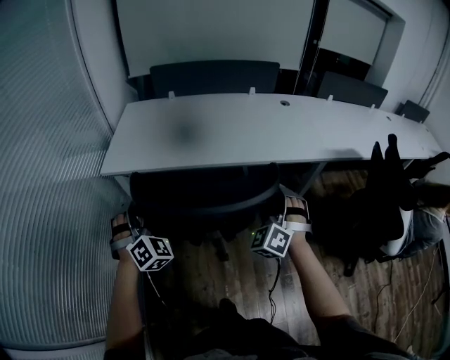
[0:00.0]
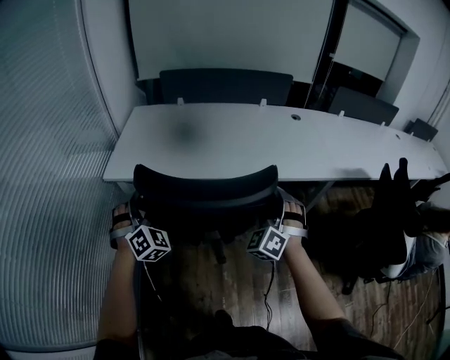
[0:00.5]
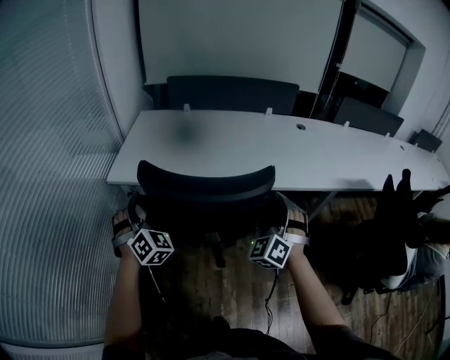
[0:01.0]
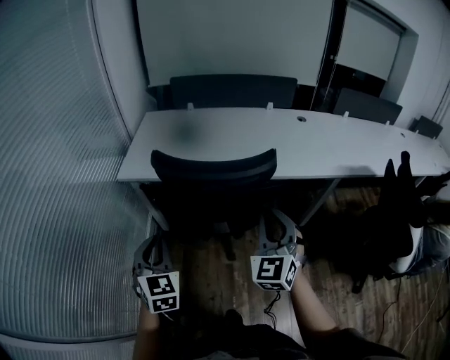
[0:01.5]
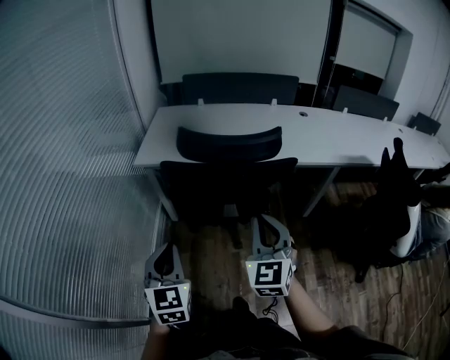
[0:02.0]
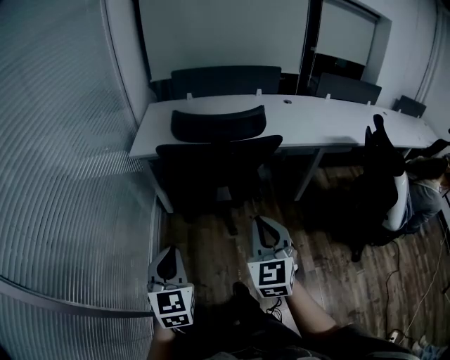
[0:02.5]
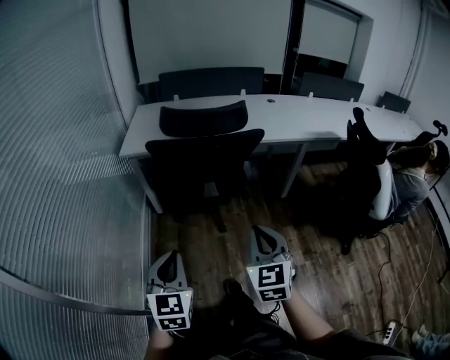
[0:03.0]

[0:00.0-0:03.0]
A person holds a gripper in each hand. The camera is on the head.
0:00.0 to 0:01.5: The right gripper goes some 10 cm upward and to the left, turns by some 40 degrees, and closes up, while the left gripper goes approximately 10 cm backward, rolls counterclockwise, seen from behind, by approximately 40 degrees, and closes up.
0:01.5 to 0:03.0: The two grippers go some 30 cm backward.

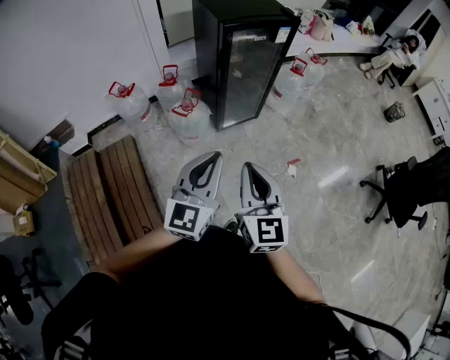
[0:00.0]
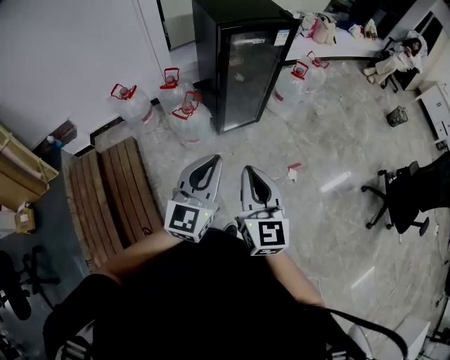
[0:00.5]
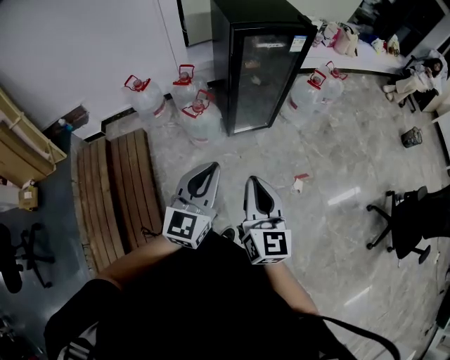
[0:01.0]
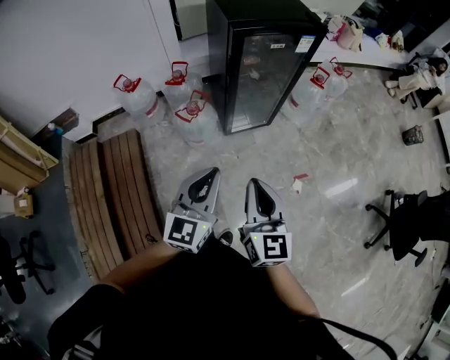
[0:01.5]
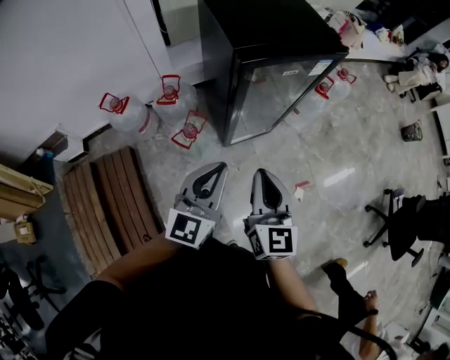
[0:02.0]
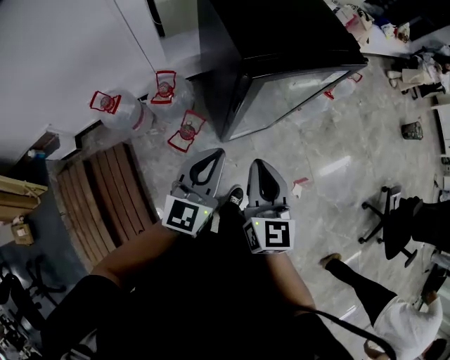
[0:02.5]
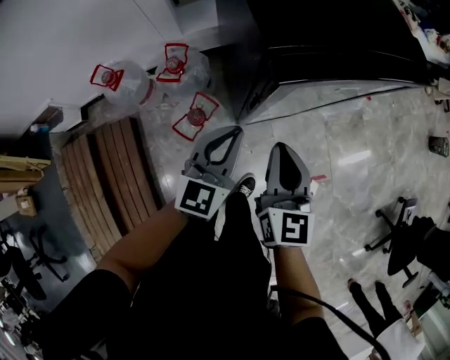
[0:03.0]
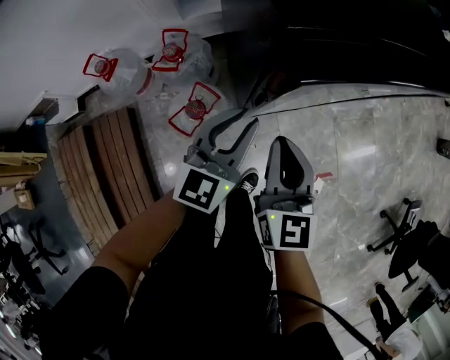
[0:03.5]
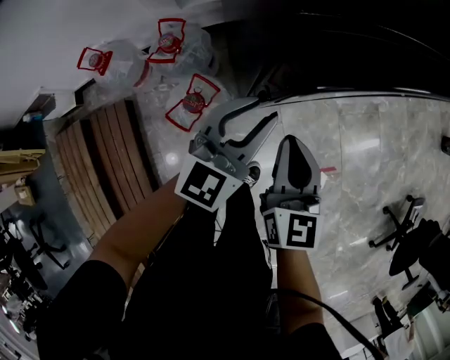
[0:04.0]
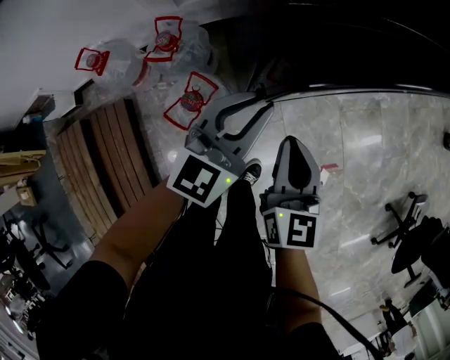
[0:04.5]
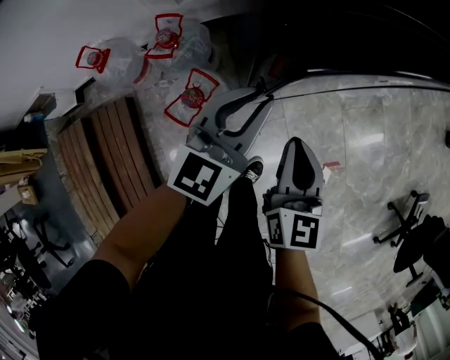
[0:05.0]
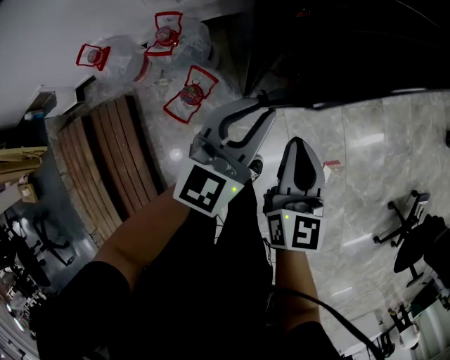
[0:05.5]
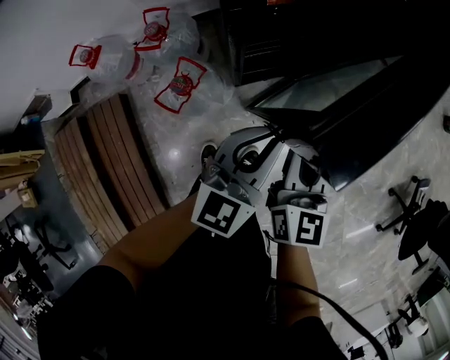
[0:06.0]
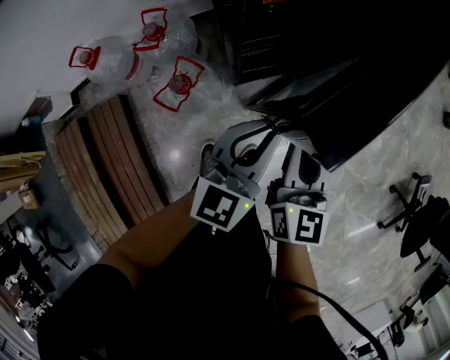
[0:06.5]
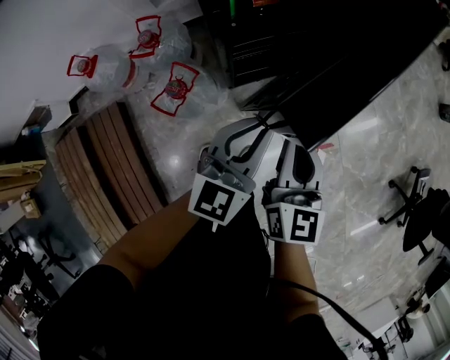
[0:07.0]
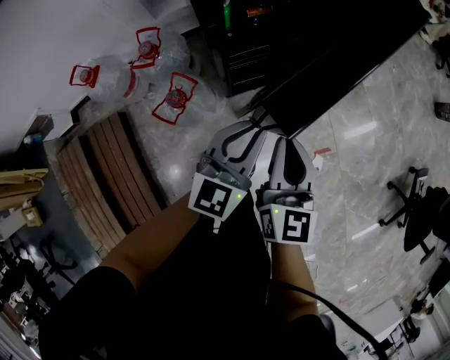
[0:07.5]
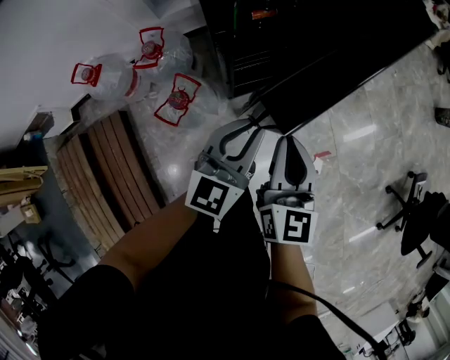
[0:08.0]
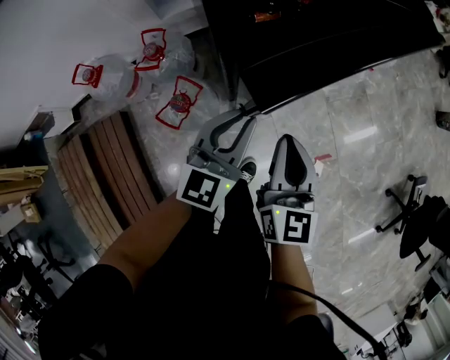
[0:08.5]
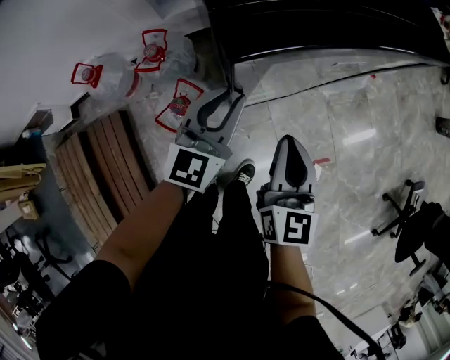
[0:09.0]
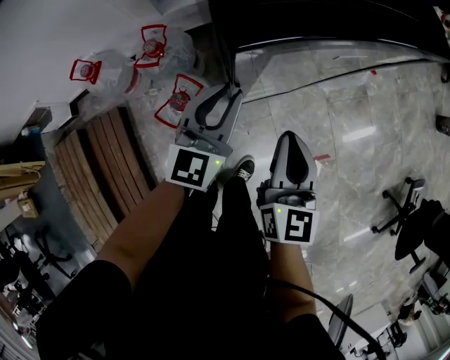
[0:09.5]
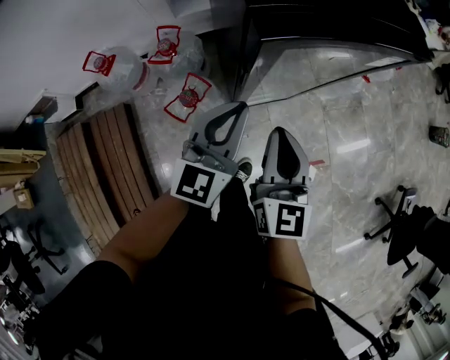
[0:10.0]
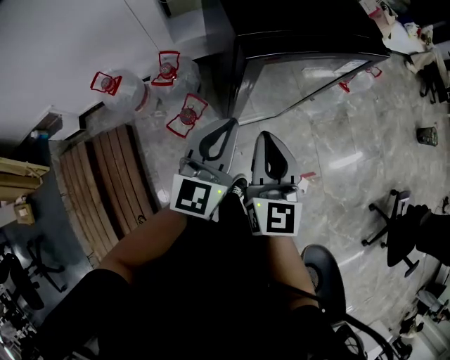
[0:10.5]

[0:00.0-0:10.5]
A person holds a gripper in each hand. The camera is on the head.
0:00.0 to 0:02.0: Both grippers travel together forward, approximately 30 cm.
0:02.0 to 0:04.0: Both grippers travel together forward and downward, approximately 30 cm. The left gripper opens up.
0:04.0 to 0:06.5: Both grippers move to the right and backward, roughly 10 cm.
0:06.5 to 0:08.5: The left gripper shifts roughly 5 cm to the left.
0:08.5 to 0:10.5: The left gripper is displaced upward by about 15 cm. The right gripper travels upward and to the left by some 15 cm.

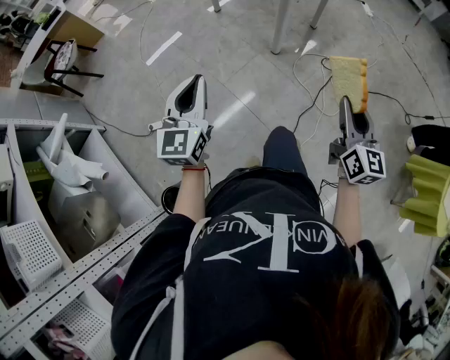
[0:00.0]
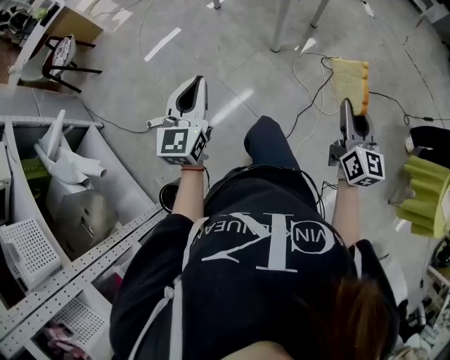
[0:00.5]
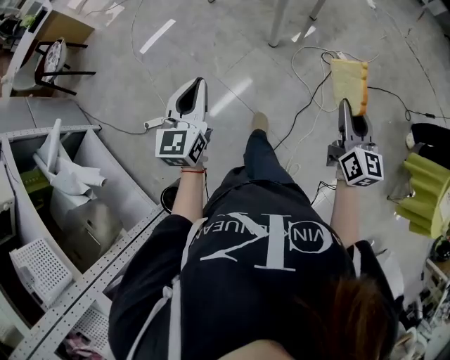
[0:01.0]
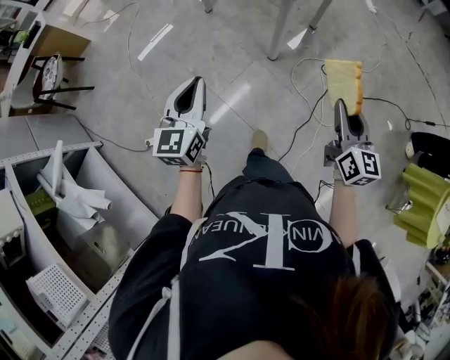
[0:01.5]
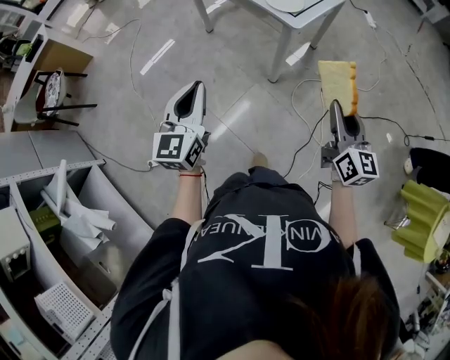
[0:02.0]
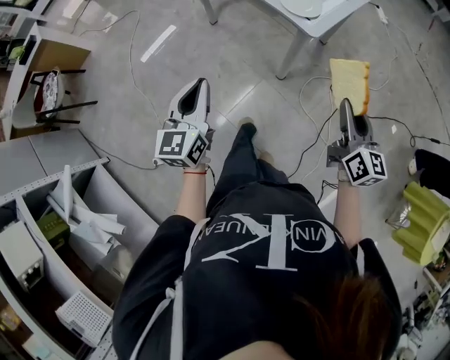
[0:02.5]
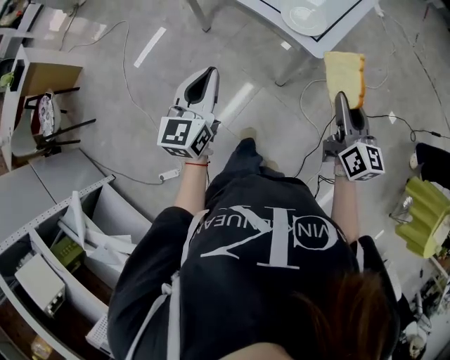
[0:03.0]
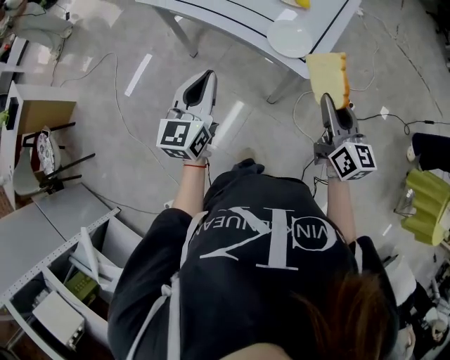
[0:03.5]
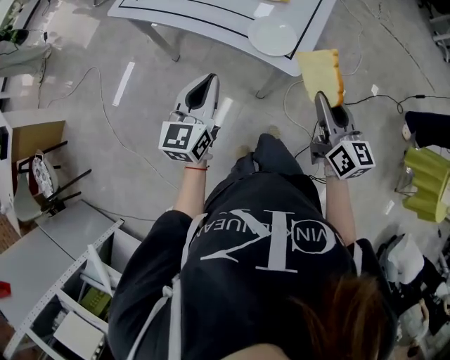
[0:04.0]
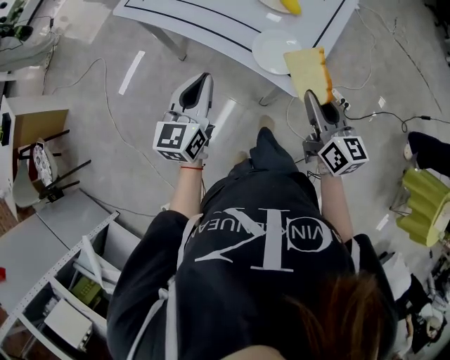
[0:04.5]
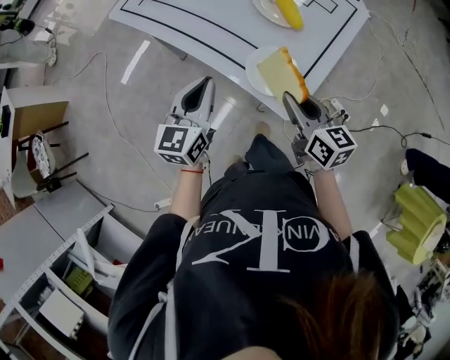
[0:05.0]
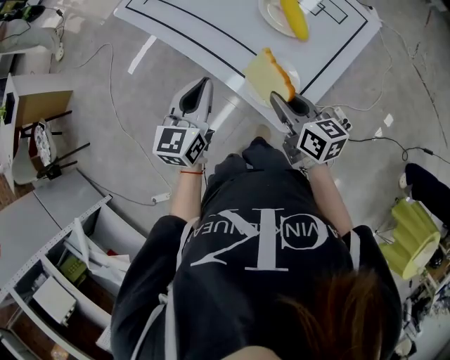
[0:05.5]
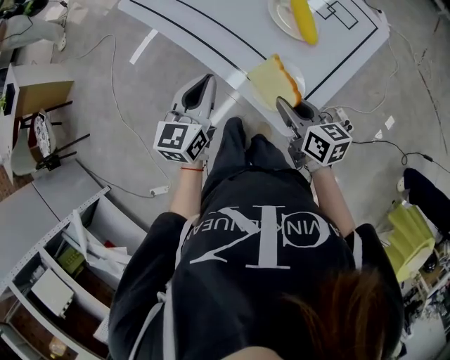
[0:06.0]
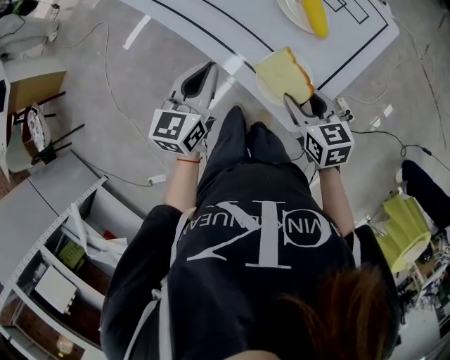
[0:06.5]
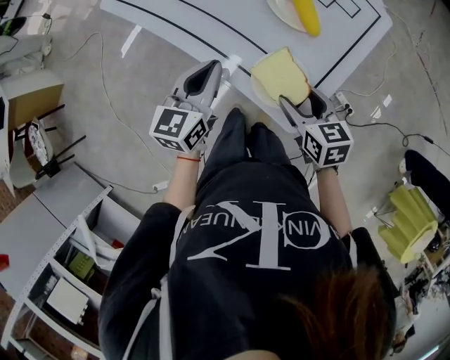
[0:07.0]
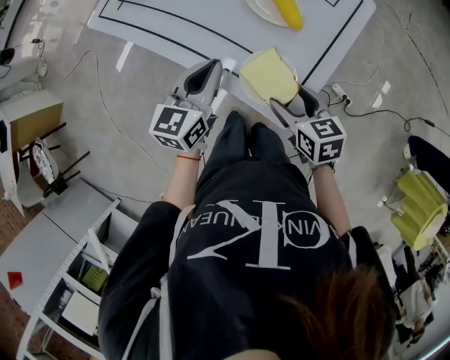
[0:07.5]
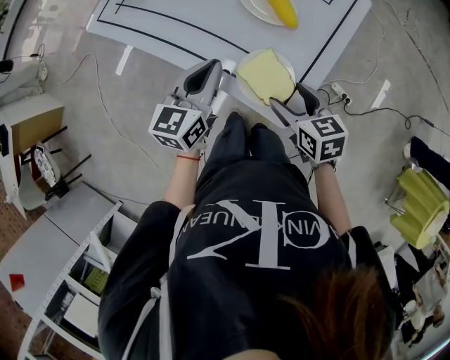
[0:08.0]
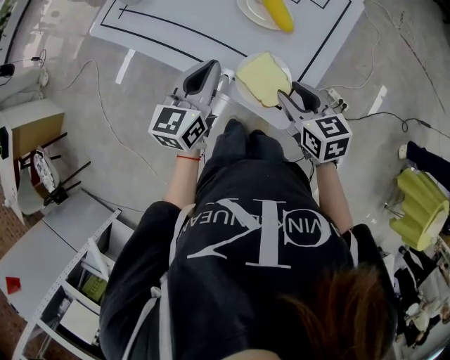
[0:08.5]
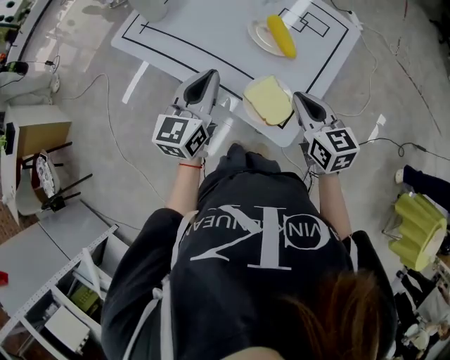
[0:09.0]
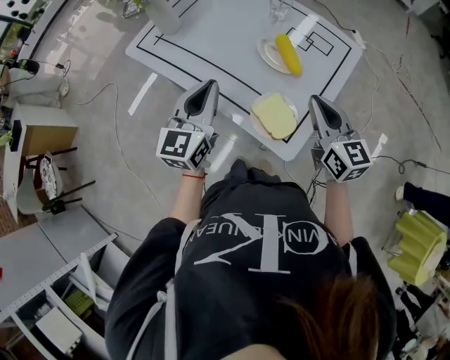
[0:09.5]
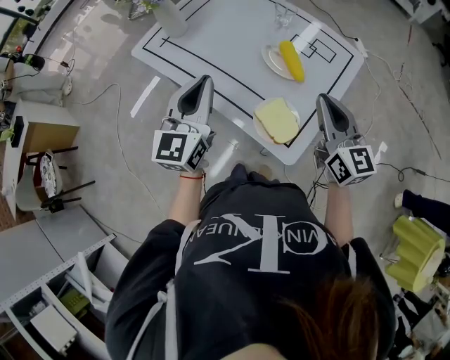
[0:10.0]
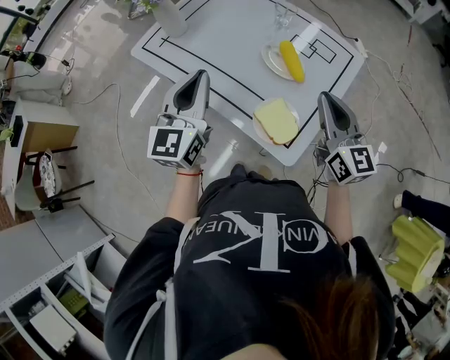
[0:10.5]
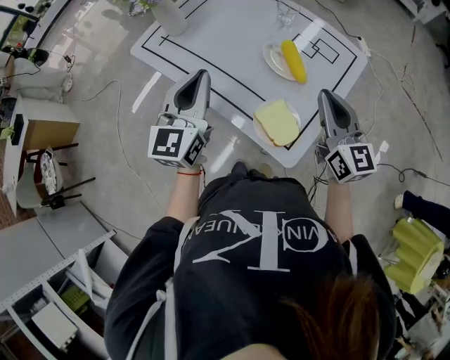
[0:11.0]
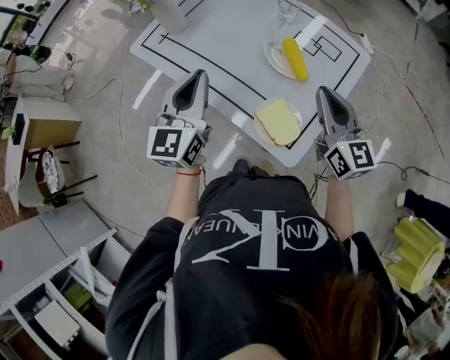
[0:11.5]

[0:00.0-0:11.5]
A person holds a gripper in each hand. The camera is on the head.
0:00.0 to 0:02.0: Both grippers travel together forward, roughly 30 cm.
0:02.0 to 0:04.0: The grippers both shift forward by some 30 cm. The left gripper changes its angle by roughly 20 degrees.
0:04.0 to 0:06.0: The left gripper moves forward, approximately 15 cm, while the right gripper travels forward and downward by some 20 cm, and changes its angle by approximately 40 degrees.
0:06.0 to 0:07.5: The left gripper moves to the right, roughly 5 cm; the right gripper turns by approximately 20 degrees, and opens.
0:07.5 to 0:09.5: The right gripper heads upward, covering about 15 cm, changes its angle by roughly 30 degrees, and closes up. Meanwhile the left gripper goes approximately 10 cm upward.
0:09.5 to 0:11.5: The left gripper moves some 5 cm.

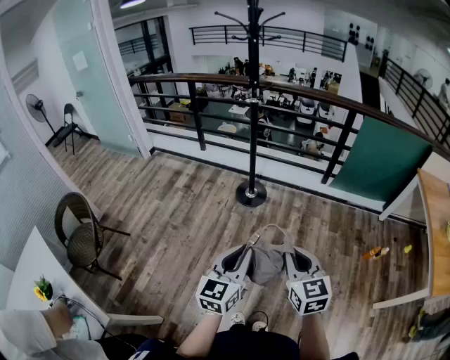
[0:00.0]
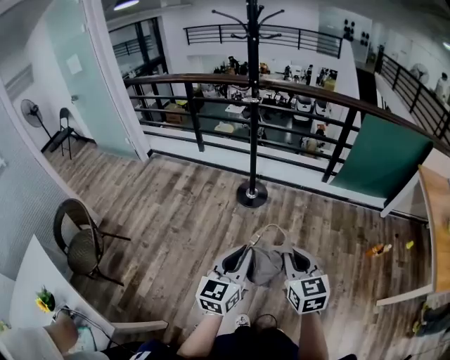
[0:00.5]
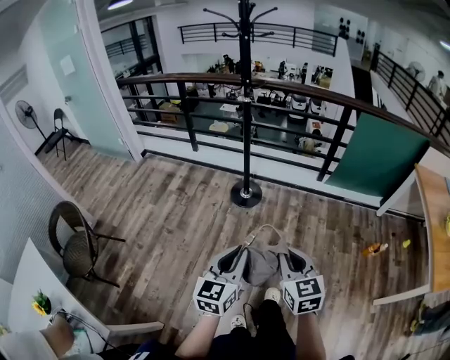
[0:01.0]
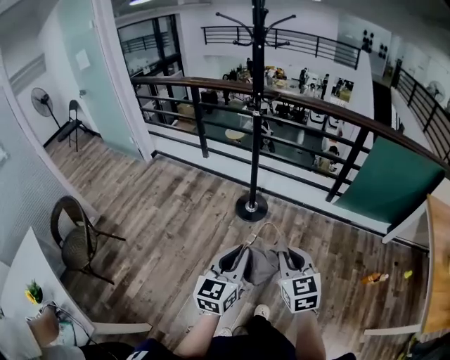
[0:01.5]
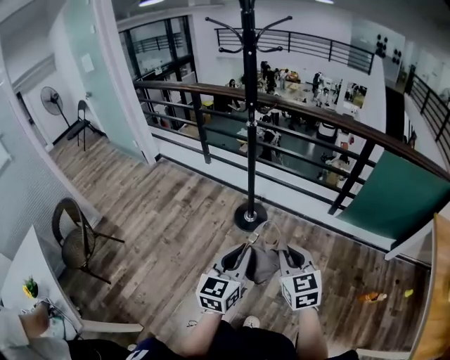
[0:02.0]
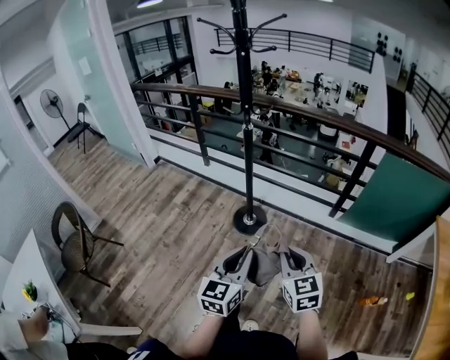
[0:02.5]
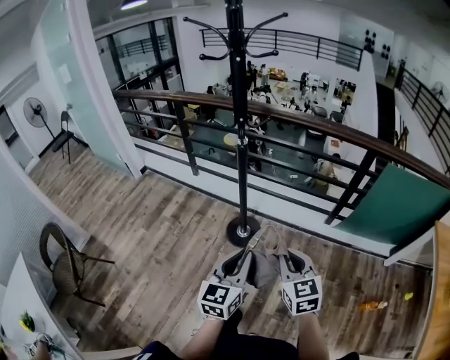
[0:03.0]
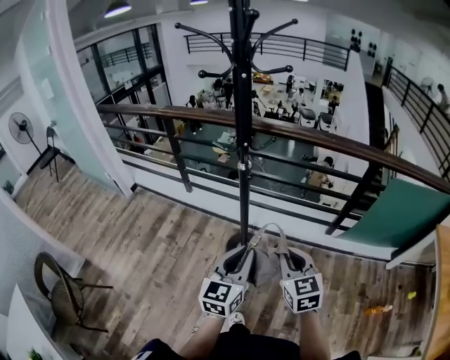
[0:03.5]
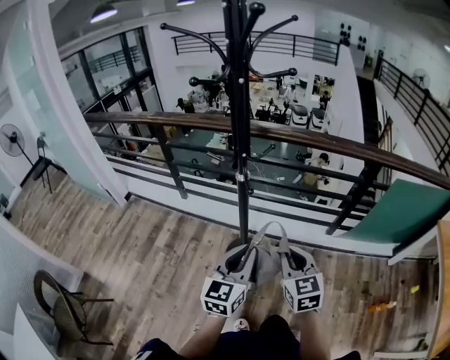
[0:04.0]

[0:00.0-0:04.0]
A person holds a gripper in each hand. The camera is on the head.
0:00.0 to 0:02.0: The left gripper travels forward and to the right by about 25 cm. The right gripper travels forward by some 25 cm.
0:02.0 to 0:04.0: The two grippers go some 35 cm forward.
